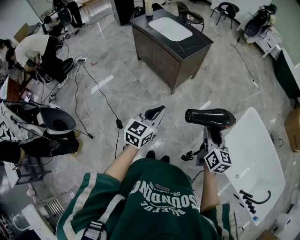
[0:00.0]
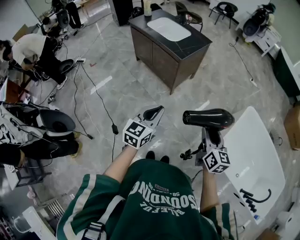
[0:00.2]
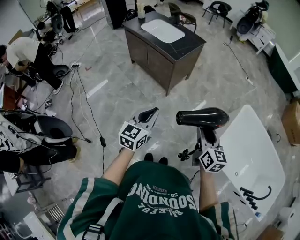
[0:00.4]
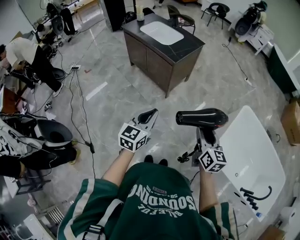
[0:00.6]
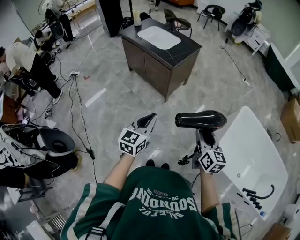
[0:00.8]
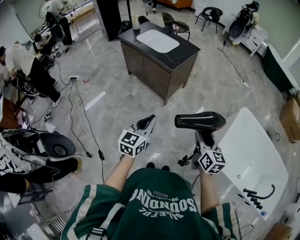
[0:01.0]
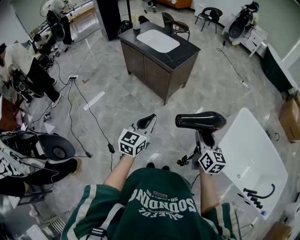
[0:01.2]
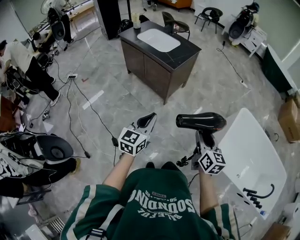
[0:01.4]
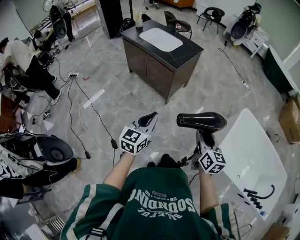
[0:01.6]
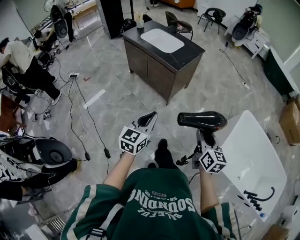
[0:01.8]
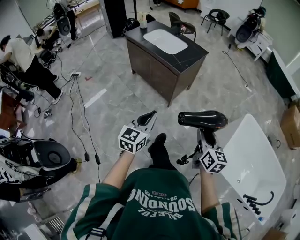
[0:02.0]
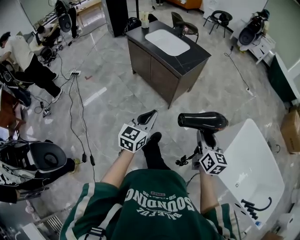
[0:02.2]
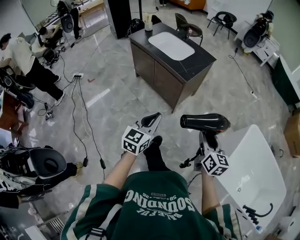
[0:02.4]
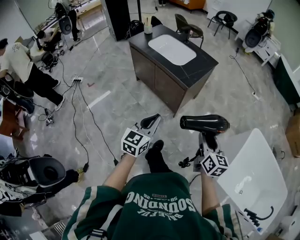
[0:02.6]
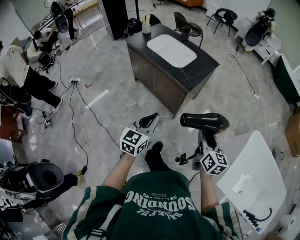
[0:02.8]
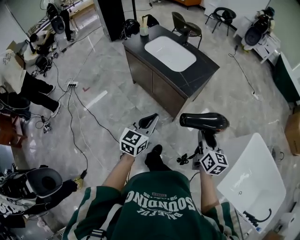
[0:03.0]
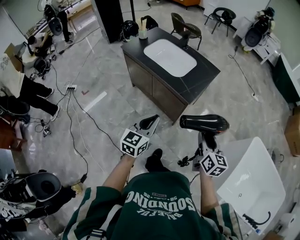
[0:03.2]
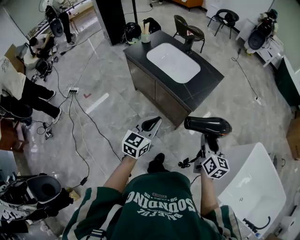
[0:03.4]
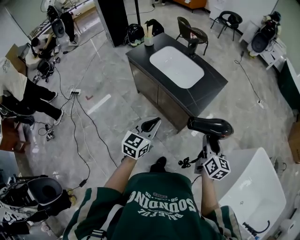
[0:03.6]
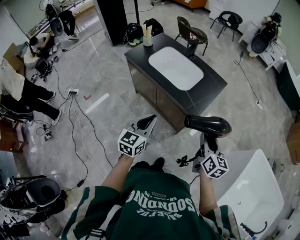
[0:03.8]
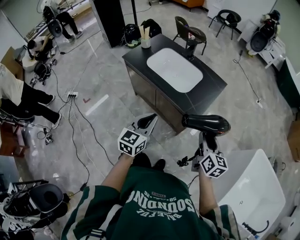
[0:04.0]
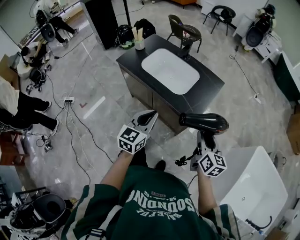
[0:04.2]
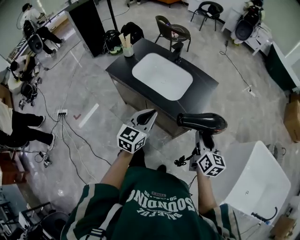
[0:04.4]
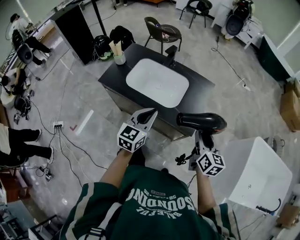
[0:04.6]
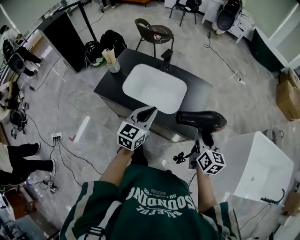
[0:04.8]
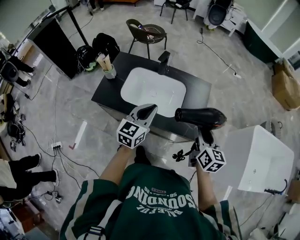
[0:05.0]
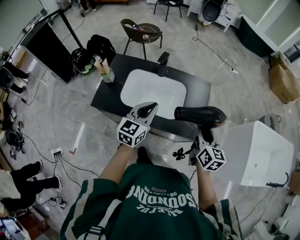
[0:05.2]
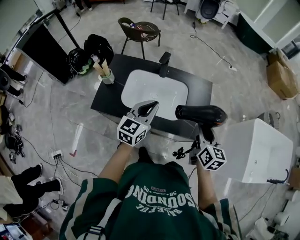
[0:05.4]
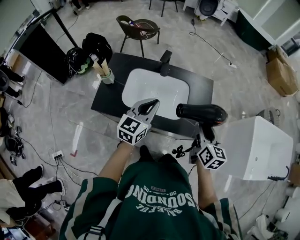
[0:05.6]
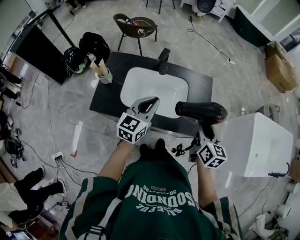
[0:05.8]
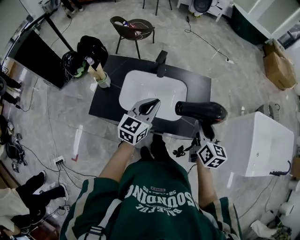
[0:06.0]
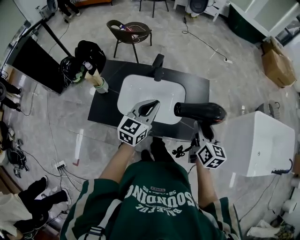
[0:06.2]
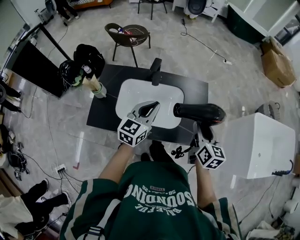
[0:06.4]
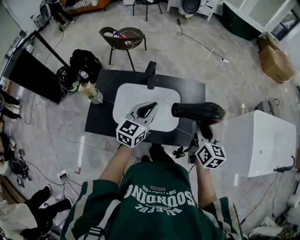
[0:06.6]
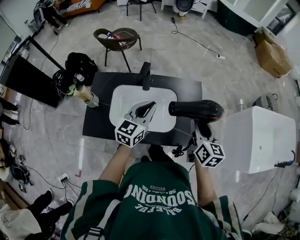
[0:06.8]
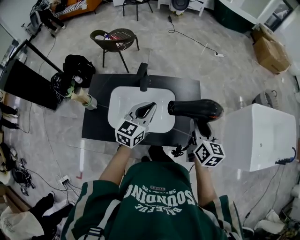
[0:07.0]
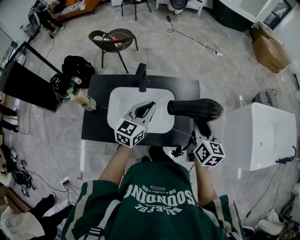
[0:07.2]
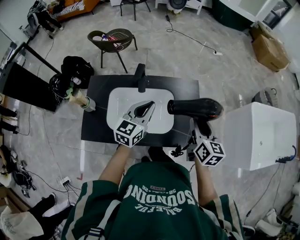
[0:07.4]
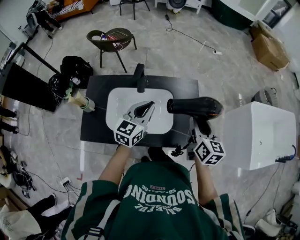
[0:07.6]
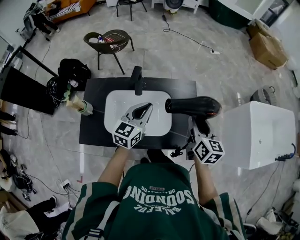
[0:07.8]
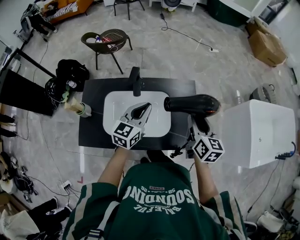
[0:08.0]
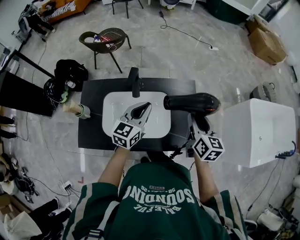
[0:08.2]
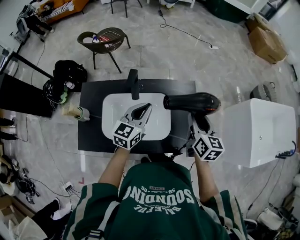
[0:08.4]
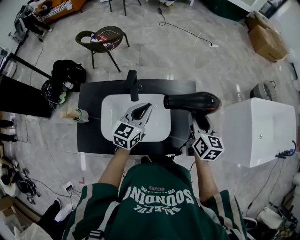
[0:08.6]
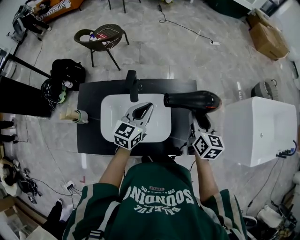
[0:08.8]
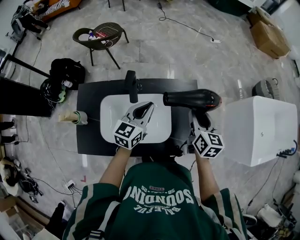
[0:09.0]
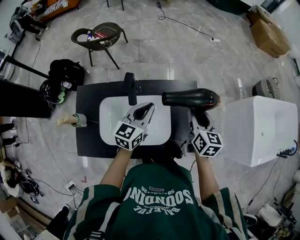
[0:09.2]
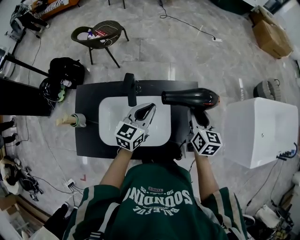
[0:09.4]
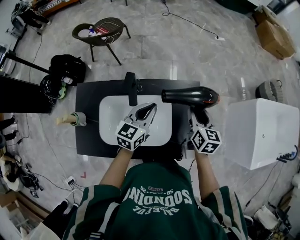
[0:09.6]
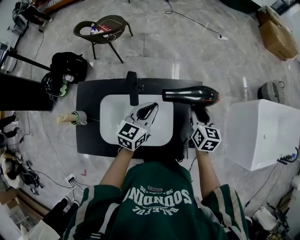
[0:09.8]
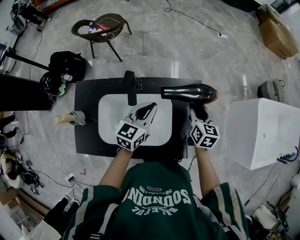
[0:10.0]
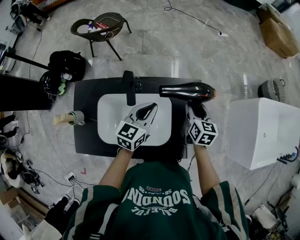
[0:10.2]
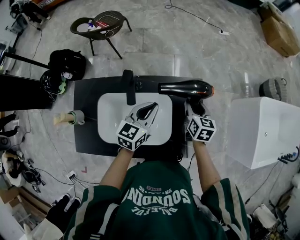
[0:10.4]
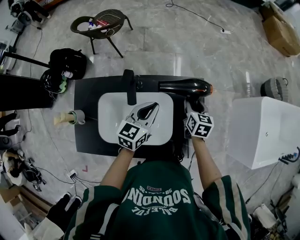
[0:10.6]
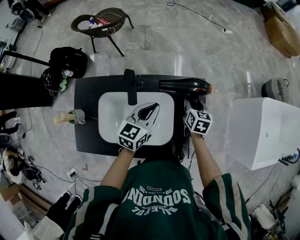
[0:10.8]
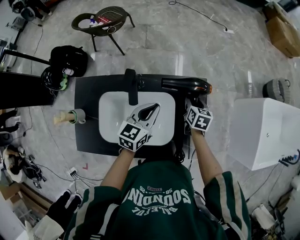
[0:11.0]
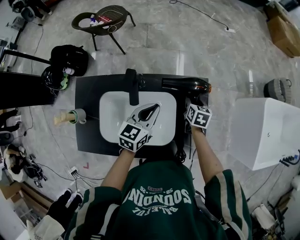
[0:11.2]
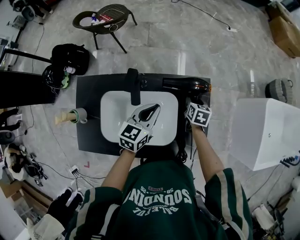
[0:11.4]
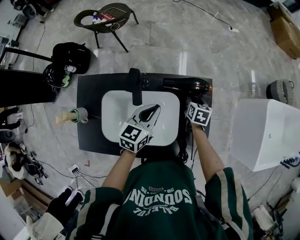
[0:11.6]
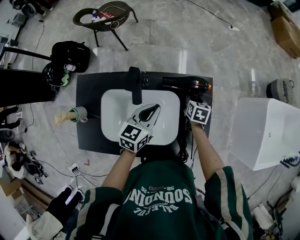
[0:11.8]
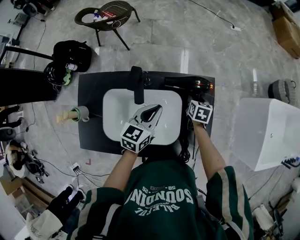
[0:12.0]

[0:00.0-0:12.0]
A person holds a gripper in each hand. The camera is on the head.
0:00.0 to 0:01.6: The grippers make only small movements.
0:01.6 to 0:03.0: Both grippers move forward and to the left, roughly 35 cm.
0:03.0 to 0:04.4: The left gripper goes approximately 30 cm forward, while the right gripper heads forward and to the left, covering about 25 cm.
0:04.4 to 0:06.0: The left gripper shifts by some 30 cm, and turns by roughly 30 degrees, while the right gripper shifts by about 20 cm, and rotates approximately 20 degrees.
0:06.0 to 0:07.6: The two grippers go about 10 cm forward.
0:07.6 to 0:09.0: The two grippers go some 10 cm forward.
0:09.0 to 0:10.4: The right gripper is displaced downward and forward by roughly 15 cm; the left gripper shifts by about 5 cm.
0:10.4 to 0:12.0: The left gripper shifts by some 5 cm. The right gripper is displaced downward by some 15 cm.

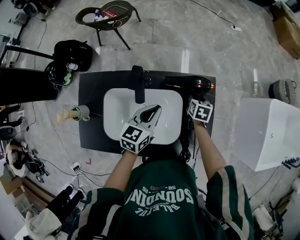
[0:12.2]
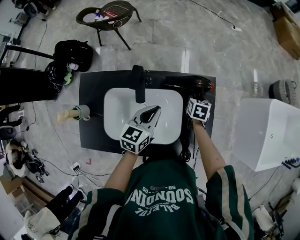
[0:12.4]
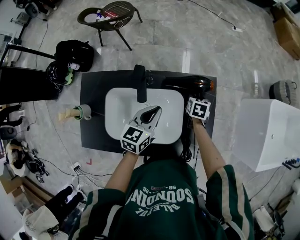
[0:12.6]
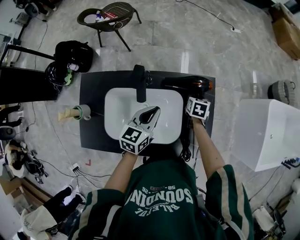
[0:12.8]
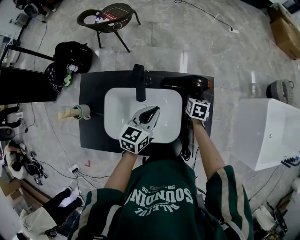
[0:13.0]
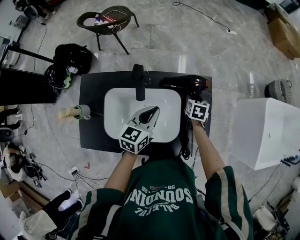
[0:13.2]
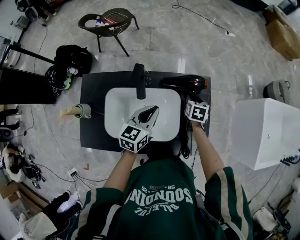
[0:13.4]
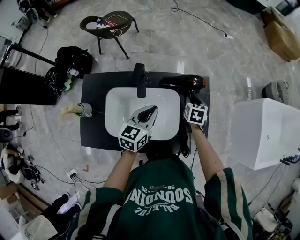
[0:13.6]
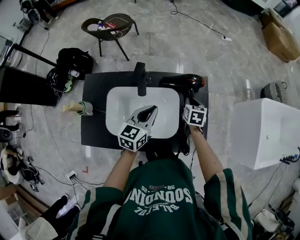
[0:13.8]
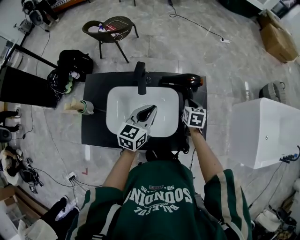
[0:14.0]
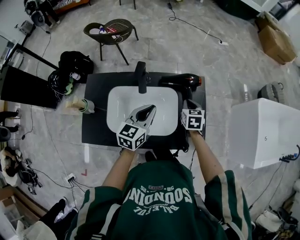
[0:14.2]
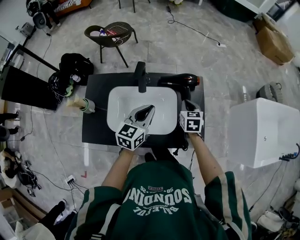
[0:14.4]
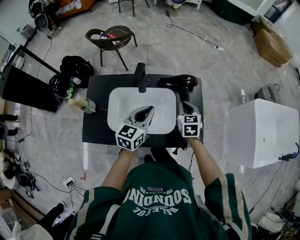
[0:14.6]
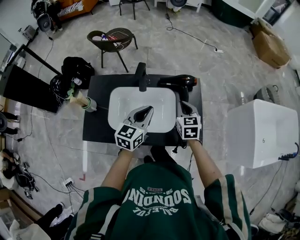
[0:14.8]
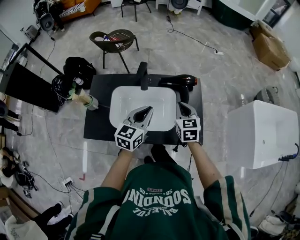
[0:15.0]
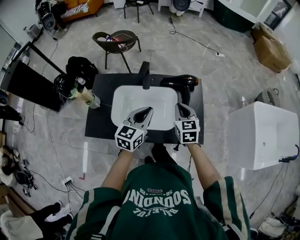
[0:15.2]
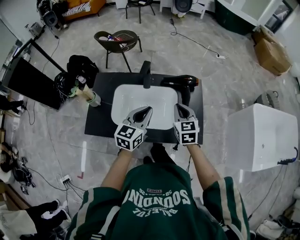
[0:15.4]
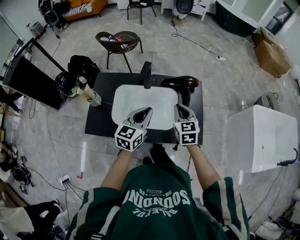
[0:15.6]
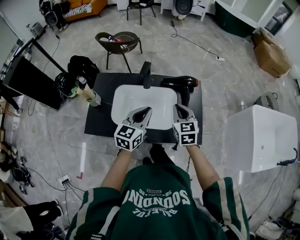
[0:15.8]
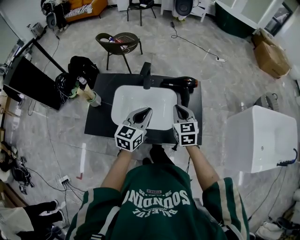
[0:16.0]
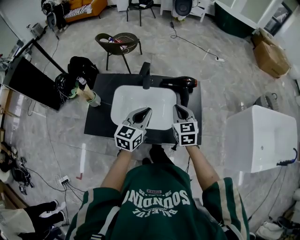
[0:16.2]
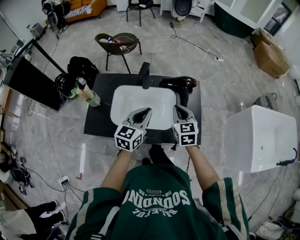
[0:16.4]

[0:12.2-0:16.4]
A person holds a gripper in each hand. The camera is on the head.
0:12.2 to 0:13.6: The right gripper heads upward, covering roughly 5 cm. The left gripper changes place by roughly 5 cm.
0:13.6 to 0:15.0: The right gripper heads upward and backward, covering about 20 cm, turns by about 30 degrees, and closes; the left gripper heads backward and upward, covering roughly 15 cm.
0:15.0 to 0:16.4: The right gripper moves roughly 5 cm.

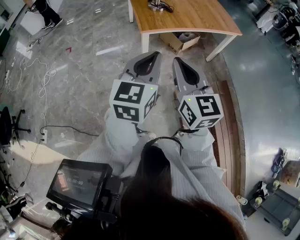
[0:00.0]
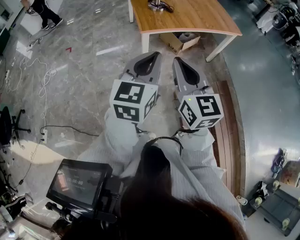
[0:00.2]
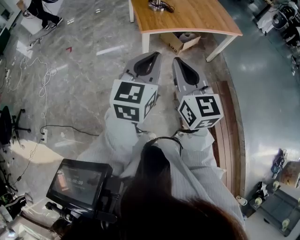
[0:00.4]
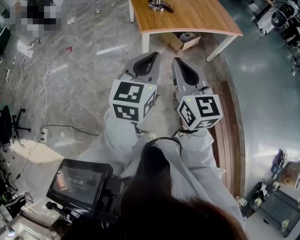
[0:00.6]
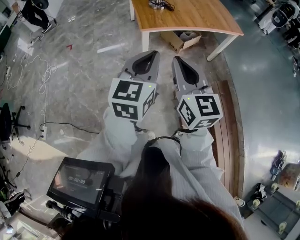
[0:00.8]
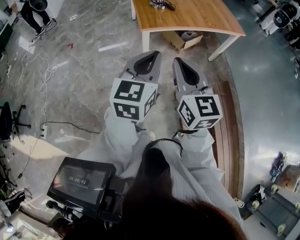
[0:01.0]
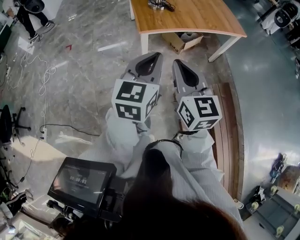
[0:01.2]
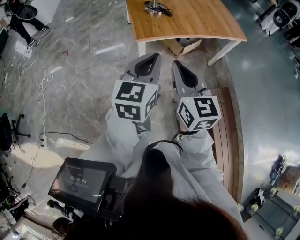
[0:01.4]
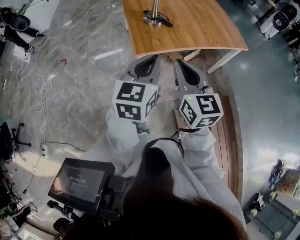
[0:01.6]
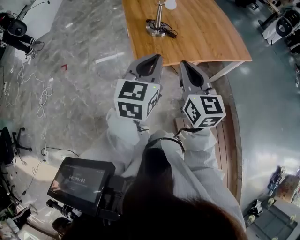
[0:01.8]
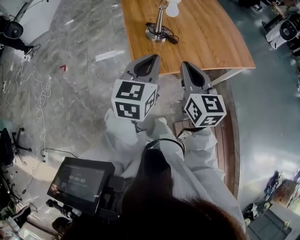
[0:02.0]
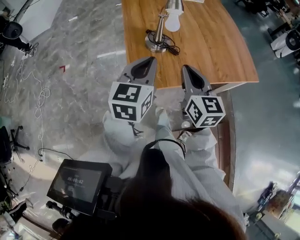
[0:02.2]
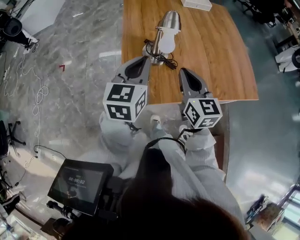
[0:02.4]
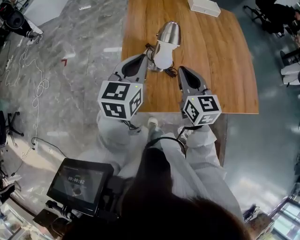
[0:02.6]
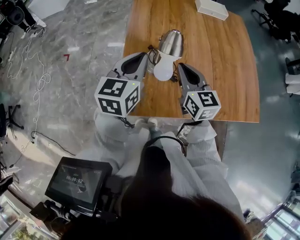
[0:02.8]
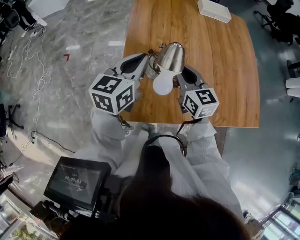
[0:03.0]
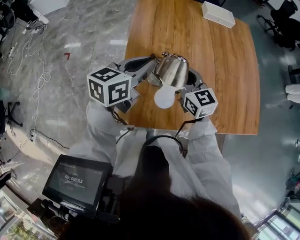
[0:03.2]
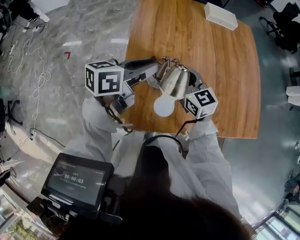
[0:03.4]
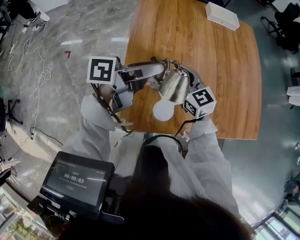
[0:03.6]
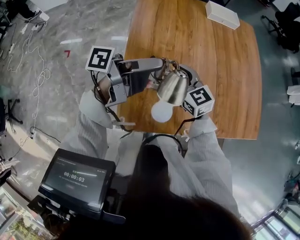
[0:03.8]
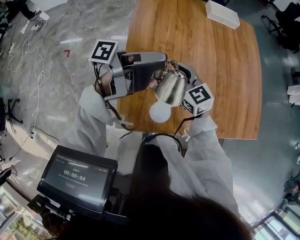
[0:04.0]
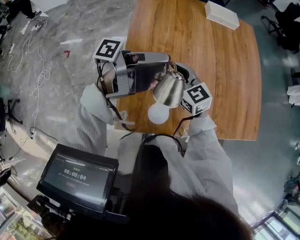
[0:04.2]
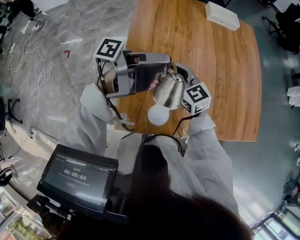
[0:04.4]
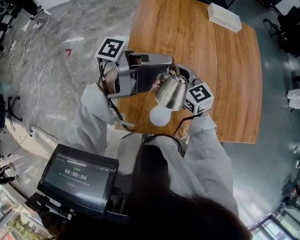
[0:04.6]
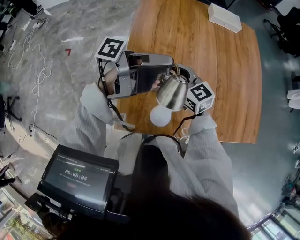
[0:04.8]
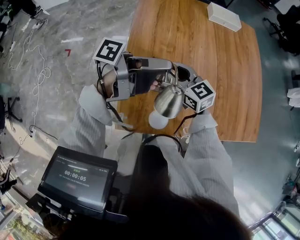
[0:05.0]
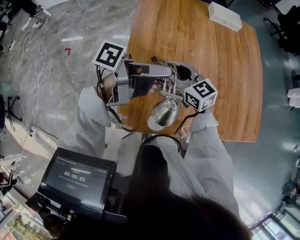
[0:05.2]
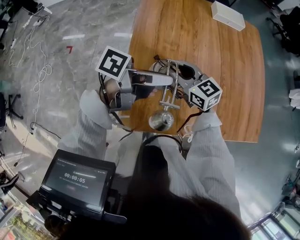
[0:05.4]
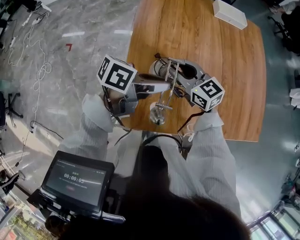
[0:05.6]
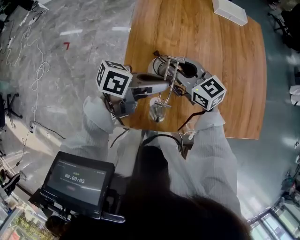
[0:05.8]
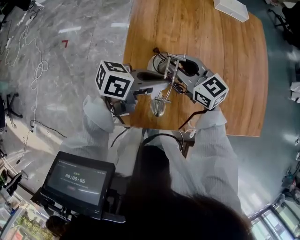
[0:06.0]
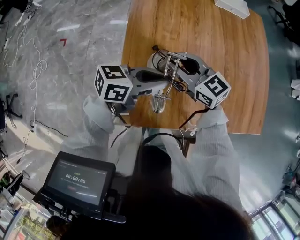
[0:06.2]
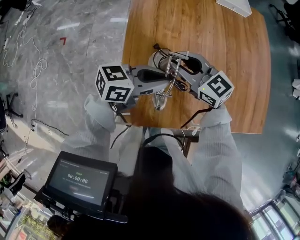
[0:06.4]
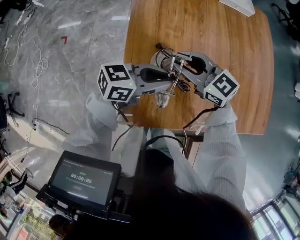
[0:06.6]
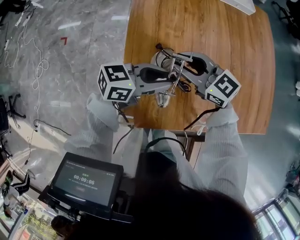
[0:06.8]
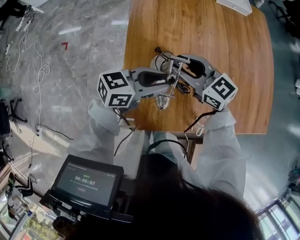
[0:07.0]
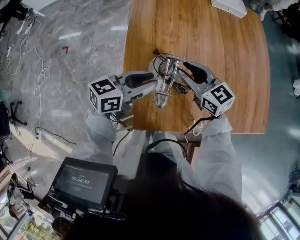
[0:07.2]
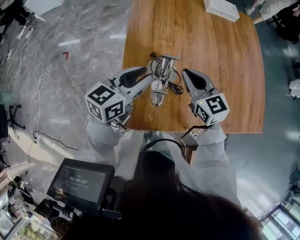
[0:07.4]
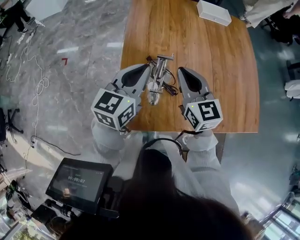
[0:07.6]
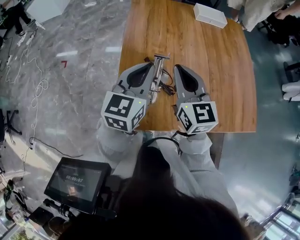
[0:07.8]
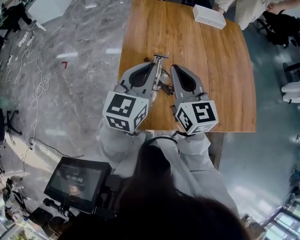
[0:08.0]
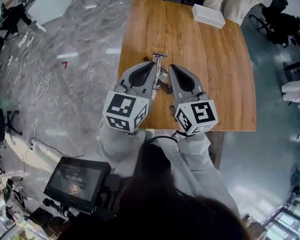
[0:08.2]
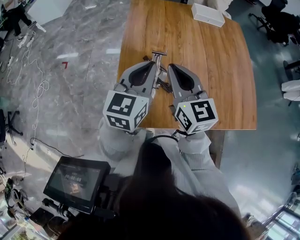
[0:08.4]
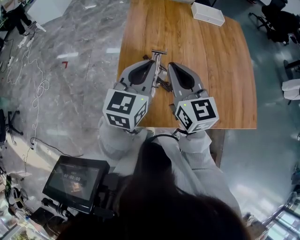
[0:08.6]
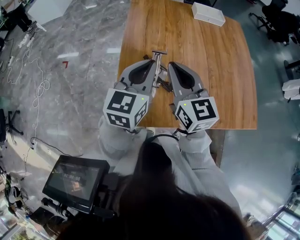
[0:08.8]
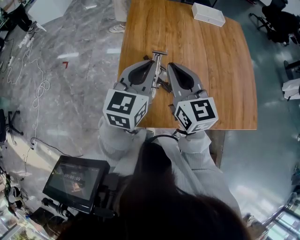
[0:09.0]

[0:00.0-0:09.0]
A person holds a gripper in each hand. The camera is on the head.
0:00.0 to 0:01.6: Both grippers move forward, roughly 25 cm.
0:01.6 to 0:03.0: The pair of grippers is taken forward, roughly 60 cm. The right gripper rotates some 30 degrees.
0:03.0 to 0:04.4: The right gripper is displaced forward and to the left by roughly 10 cm, and opens its fingers. The left gripper shifts roughly 10 cm to the right and forward, turns by roughly 90 degrees, and opens.
0:04.4 to 0:06.0: The left gripper travels downward by some 10 cm, twists some 40 degrees clockwise, seen from behind, and closes its fingers.
0:06.0 to 0:07.6: The two grippers go some 10 cm upward. The left gripper rotates about 50 degrees. The right gripper turns by approximately 30 degrees, and closes up.
0:07.6 to 0:09.0: The right gripper moves upward, approximately 5 cm.
